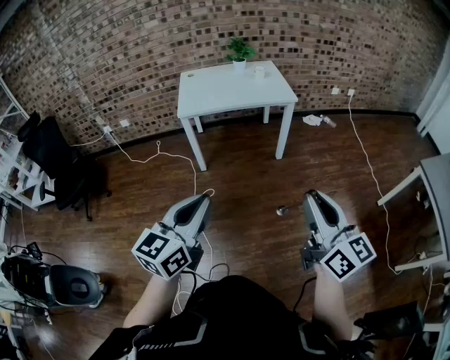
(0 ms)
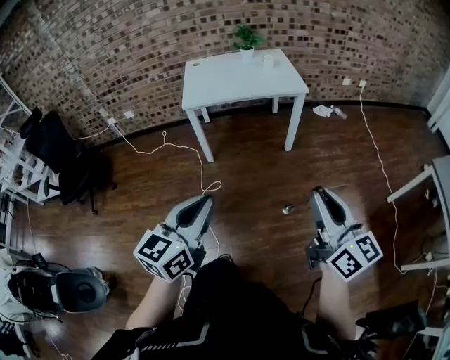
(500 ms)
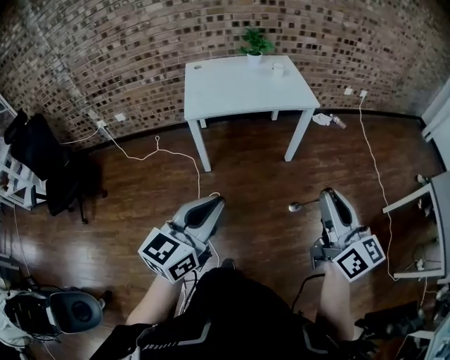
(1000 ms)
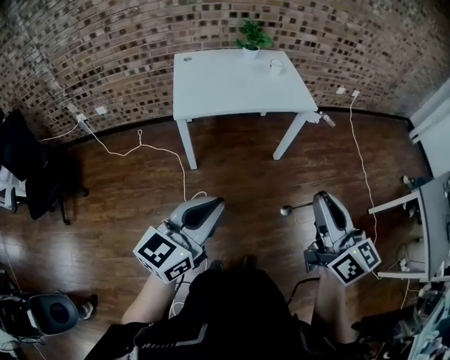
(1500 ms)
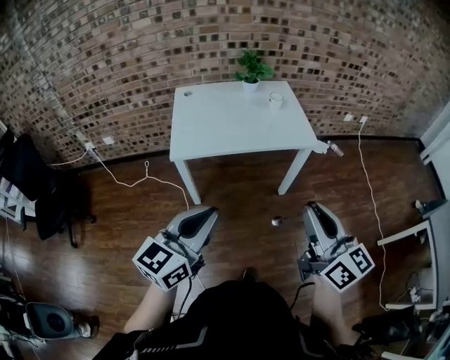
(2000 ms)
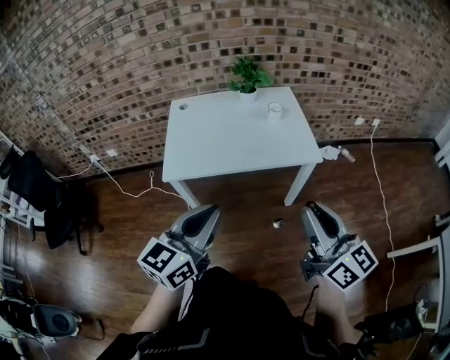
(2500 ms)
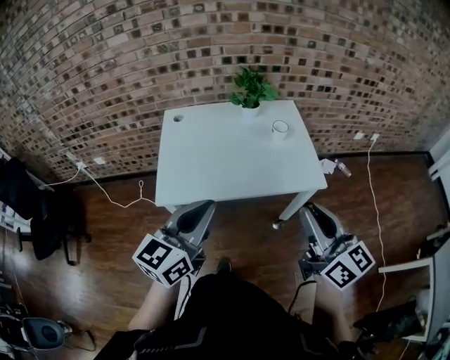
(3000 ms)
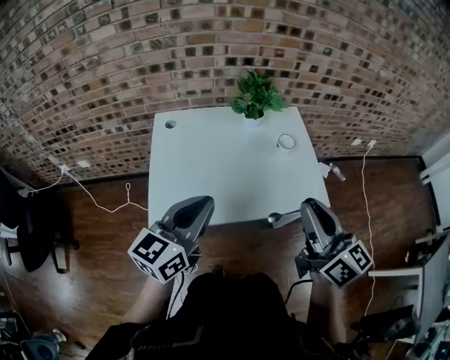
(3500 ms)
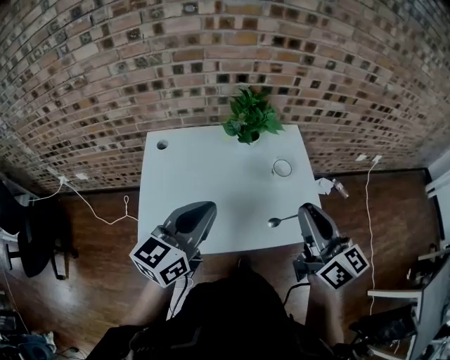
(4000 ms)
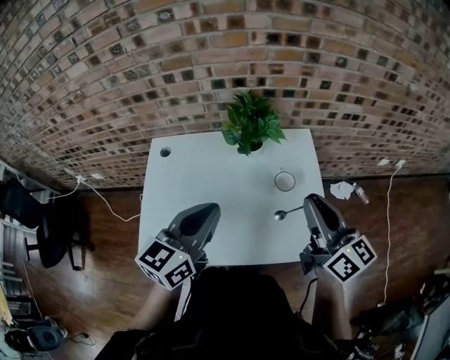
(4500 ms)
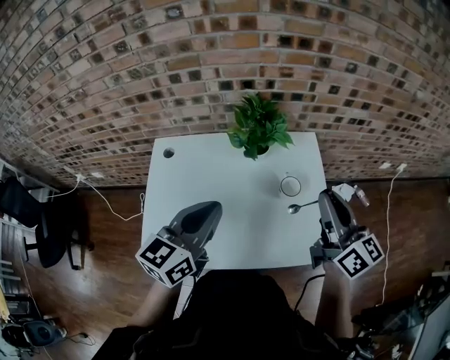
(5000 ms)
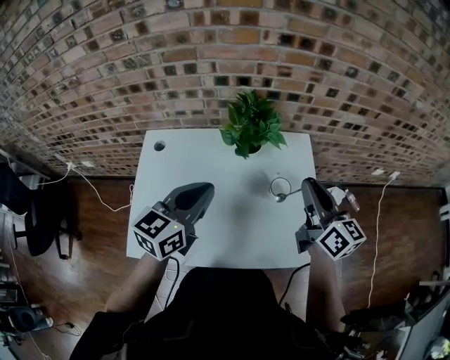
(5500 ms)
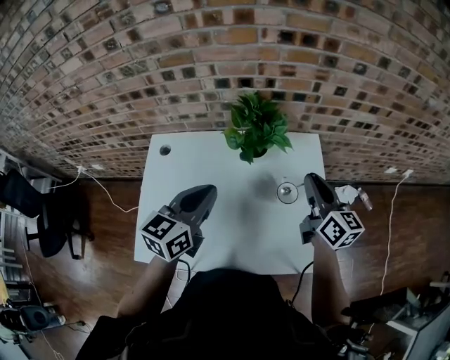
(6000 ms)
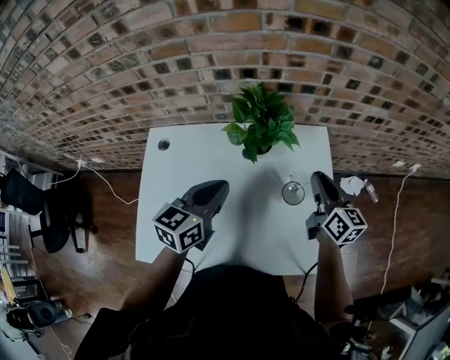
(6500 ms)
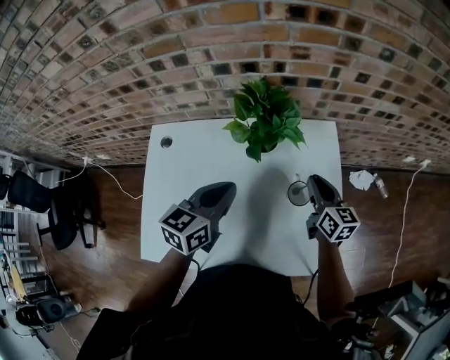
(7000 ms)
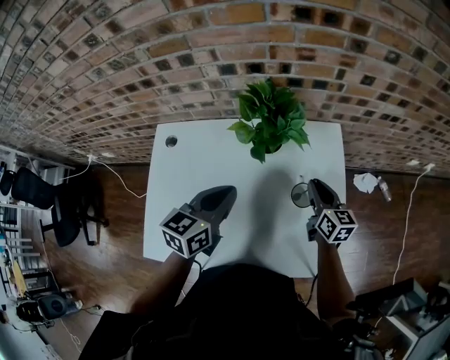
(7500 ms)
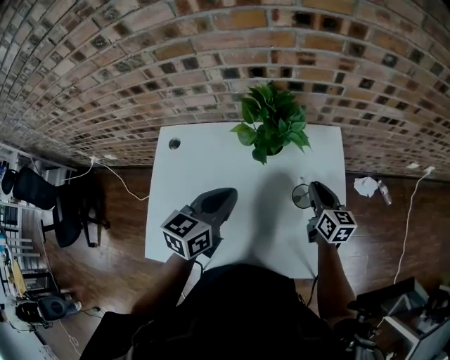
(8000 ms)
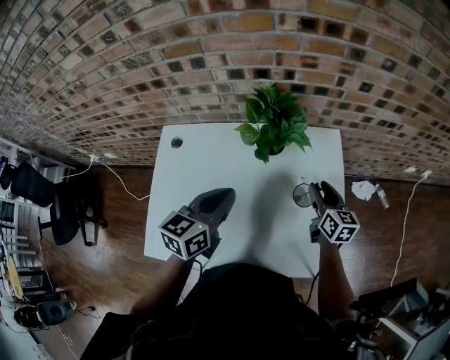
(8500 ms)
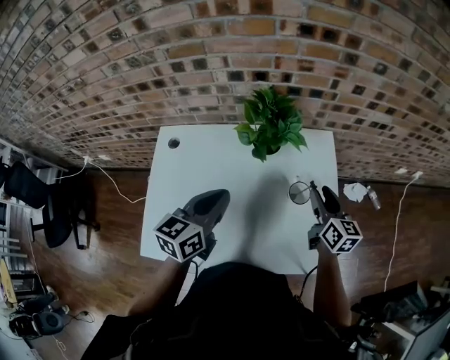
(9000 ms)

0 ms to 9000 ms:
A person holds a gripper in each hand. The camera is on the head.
0 ms to 2000 ms: Both grippers travel together forward, roughly 35 cm.
2000 ms to 4500 ms: The pair of grippers is taken forward, approximately 60 cm.
4500 ms to 7000 ms: The left gripper travels forward and downward by approximately 20 cm; the right gripper travels downward and forward by about 30 cm, and changes its angle by some 20 degrees.
7000 ms to 9000 ms: The right gripper ends up about 5 cm from where it was, and opens its fingers, while the left gripper moves some 5 cm.

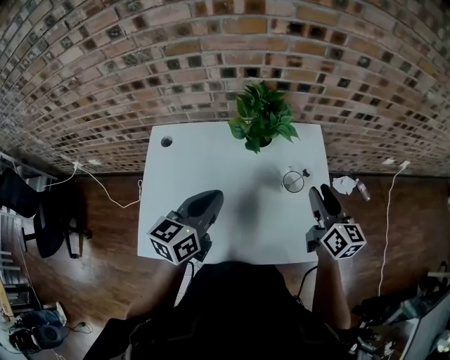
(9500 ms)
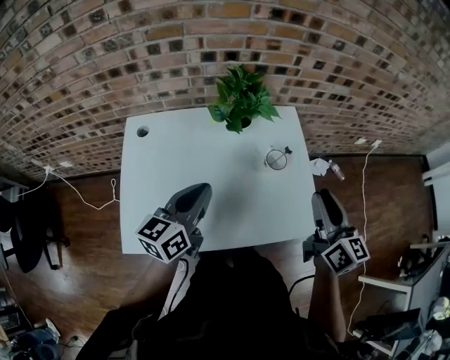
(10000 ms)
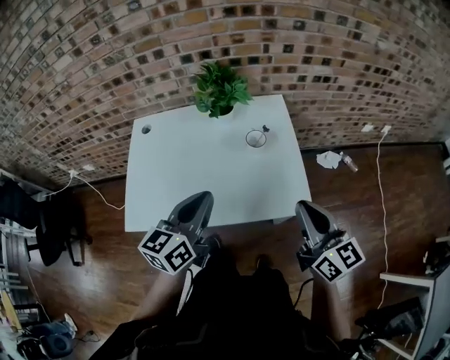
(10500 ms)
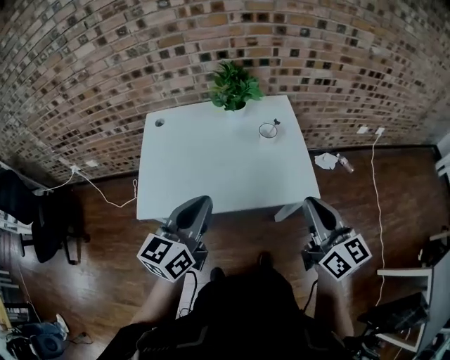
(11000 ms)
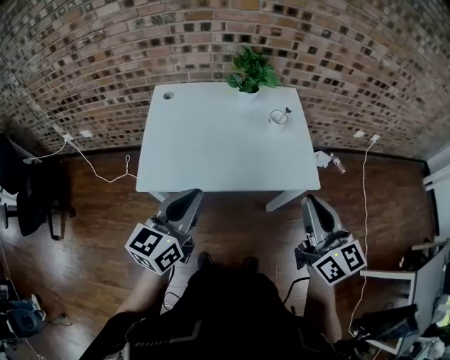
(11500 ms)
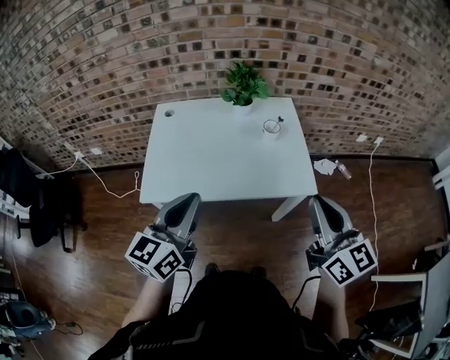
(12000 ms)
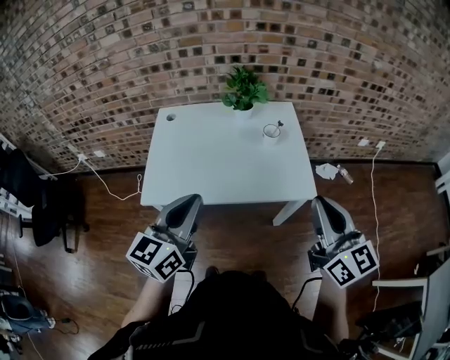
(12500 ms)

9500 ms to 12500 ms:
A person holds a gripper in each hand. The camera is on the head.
9500 ms to 11000 ms: The two grippers go approximately 30 cm backward. The right gripper closes its fingers.
11000 ms to 12500 ms: The left gripper heads backward, covering approximately 5 cm. Meanwhile the right gripper shifts about 10 cm backward and upward.

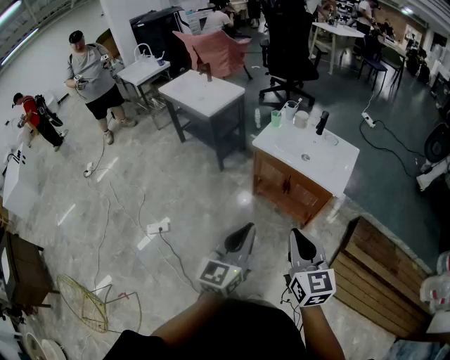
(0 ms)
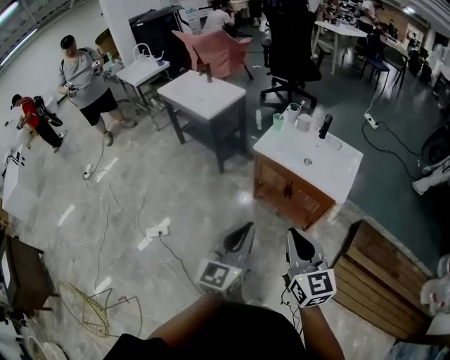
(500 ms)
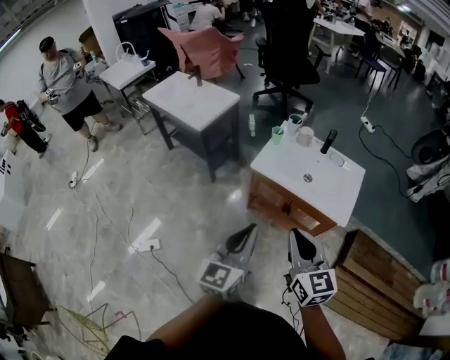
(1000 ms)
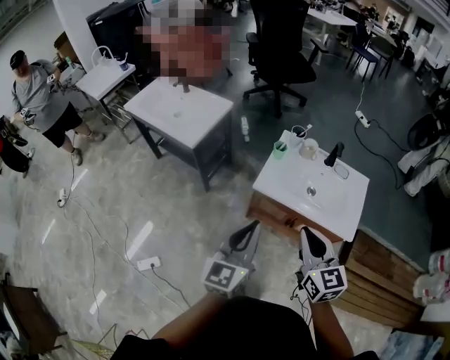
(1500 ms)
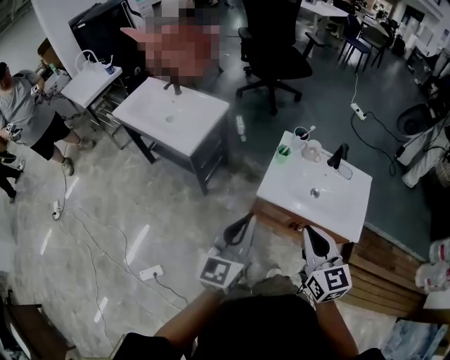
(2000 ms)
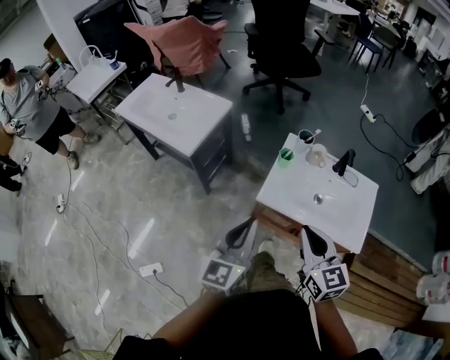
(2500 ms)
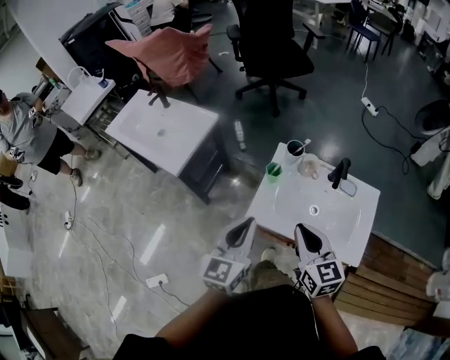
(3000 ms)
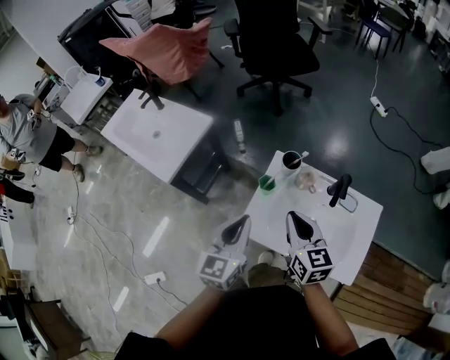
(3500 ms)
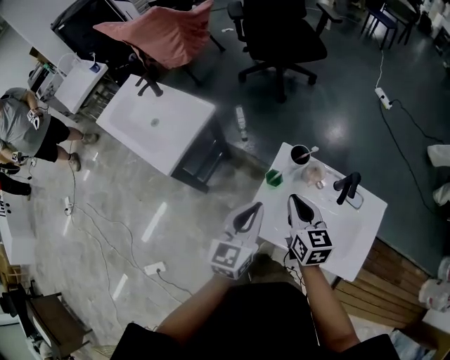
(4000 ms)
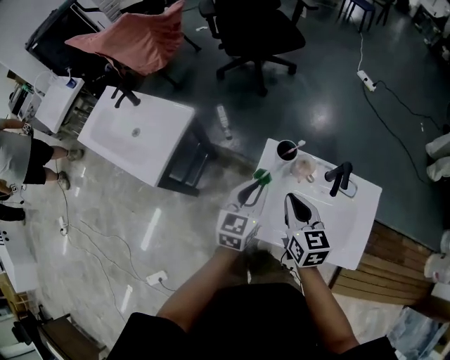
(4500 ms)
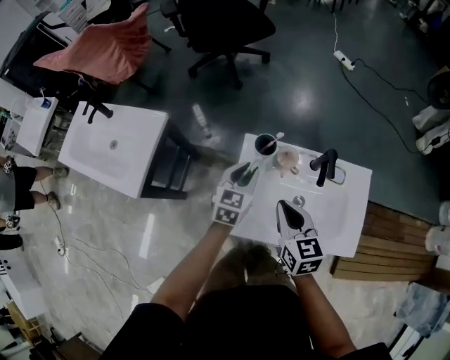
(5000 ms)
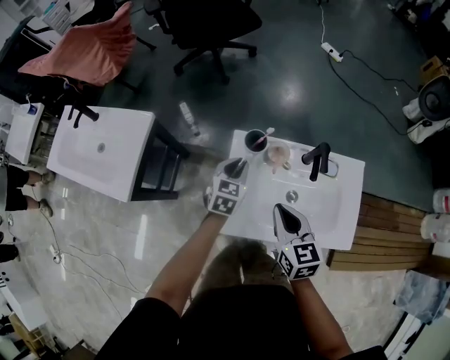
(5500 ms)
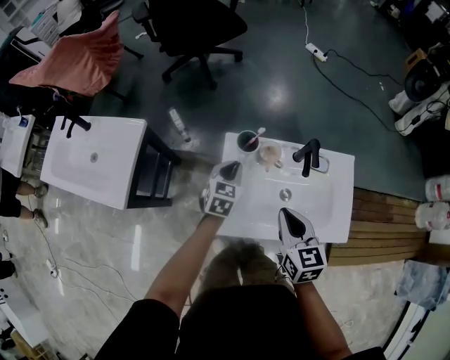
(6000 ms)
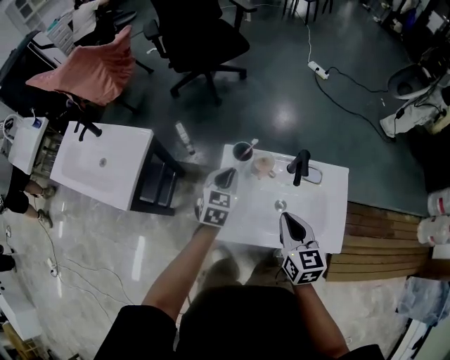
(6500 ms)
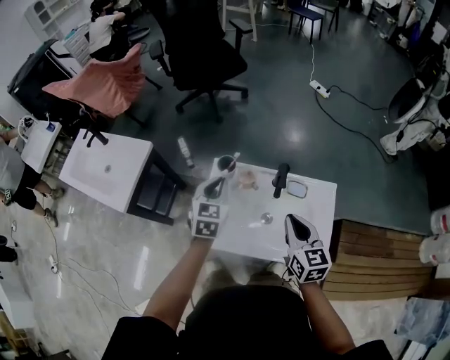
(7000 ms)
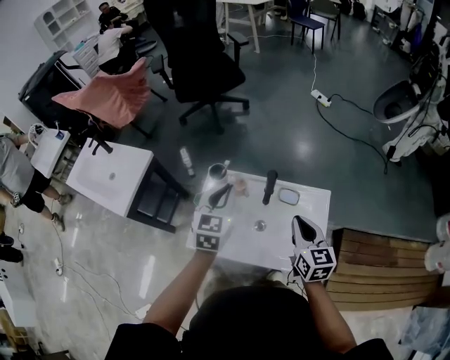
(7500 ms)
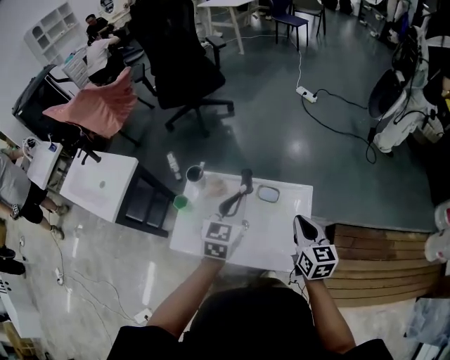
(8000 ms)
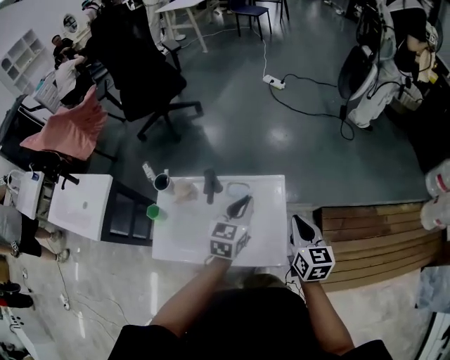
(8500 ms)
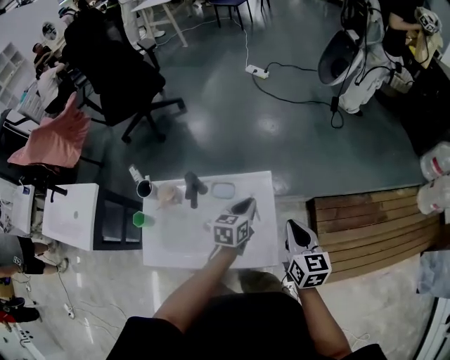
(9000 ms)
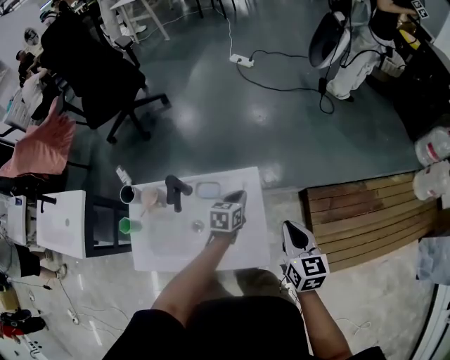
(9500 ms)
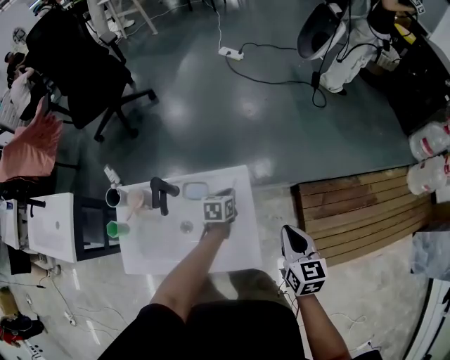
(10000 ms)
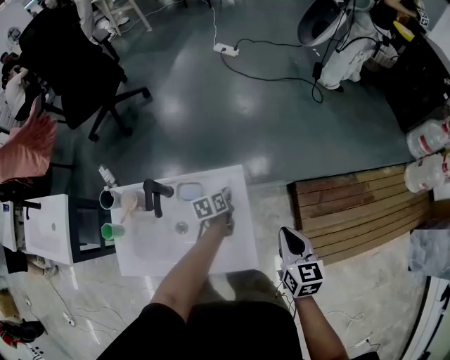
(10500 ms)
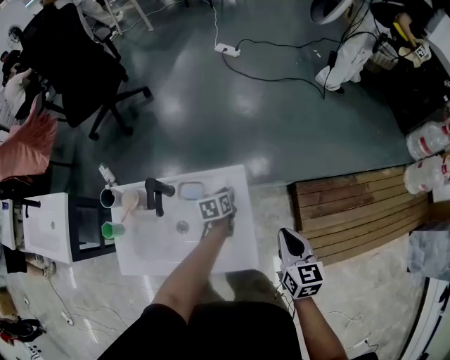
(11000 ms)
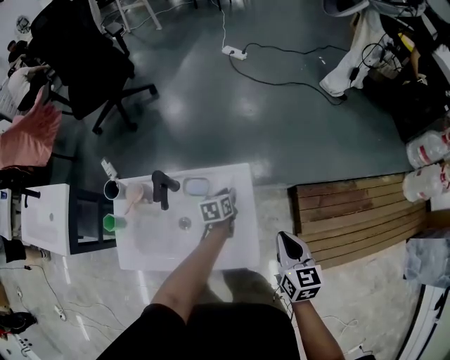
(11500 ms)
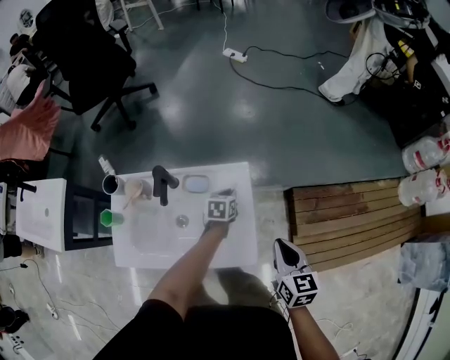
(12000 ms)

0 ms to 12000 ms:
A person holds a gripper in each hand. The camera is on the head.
0 ms to 2000 ms: The pair of grippers is taken forward, approximately 50 cm.
2000 ms to 4000 ms: The left gripper travels forward and to the right by some 35 cm, while the right gripper heads forward, covering some 35 cm.
4000 ms to 6000 ms: The right gripper travels to the right by some 10 cm, and changes its angle by about 20 degrees; the left gripper moves downward and forward, approximately 25 cm, and swivels some 30 degrees.
6000 ms to 8000 ms: The left gripper is displaced to the right and upward by roughly 35 cm. The right gripper is displaced to the right by roughly 35 cm.
8000 ms to 10000 ms: The right gripper shifts approximately 20 cm to the right and downward, while the left gripper heads downward, to the right and forward, covering approximately 40 cm, and changes its angle by roughly 40 degrees.
10000 ms to 12000 ms: The right gripper travels backward by about 5 cm.

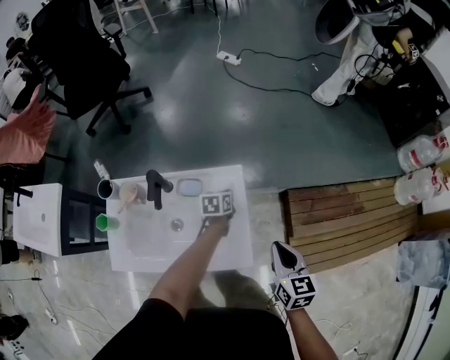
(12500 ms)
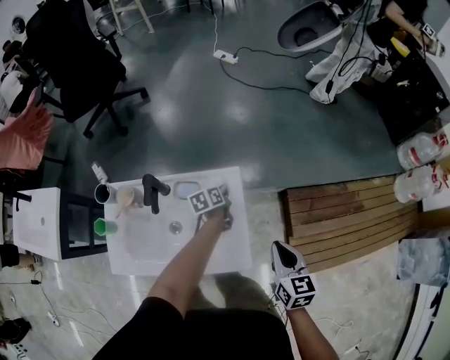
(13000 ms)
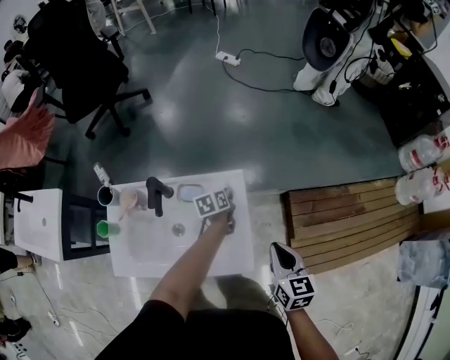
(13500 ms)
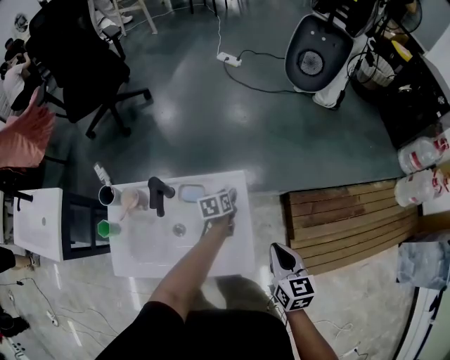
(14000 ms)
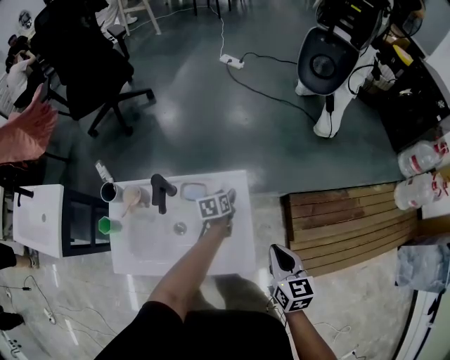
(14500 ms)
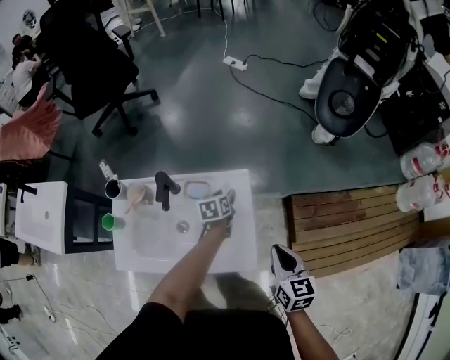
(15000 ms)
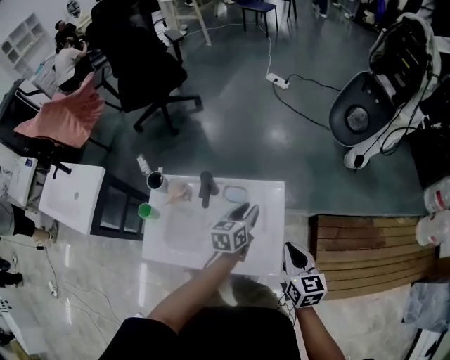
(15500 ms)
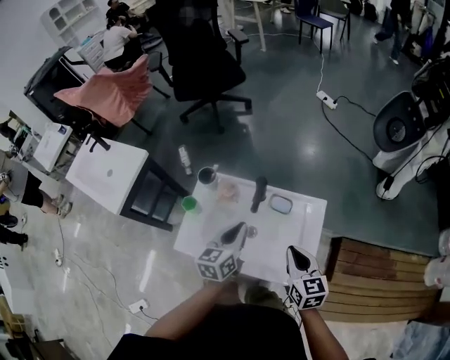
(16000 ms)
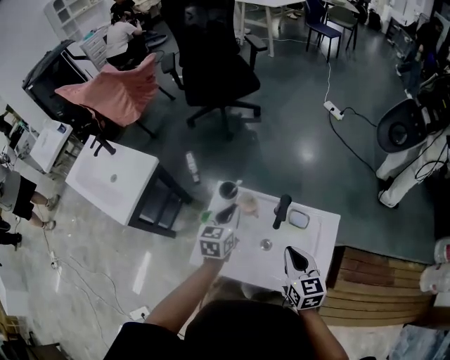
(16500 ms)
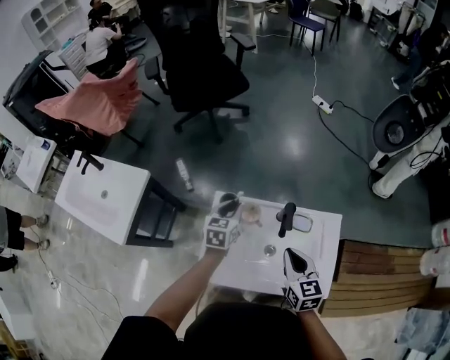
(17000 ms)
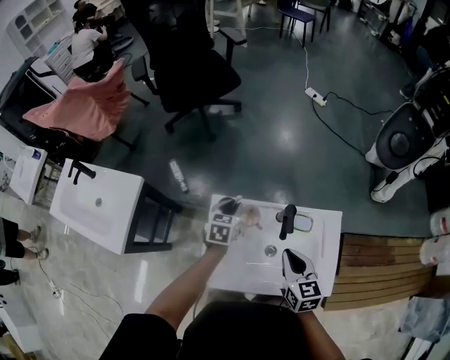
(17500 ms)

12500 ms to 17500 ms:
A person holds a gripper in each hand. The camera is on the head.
12500 ms to 15000 ms: The left gripper opens its fingers.
15000 ms to 17500 ms: Both grippers are carried to the left, approximately 40 cm. The left gripper changes its angle by some 20 degrees, and closes its fingers.
